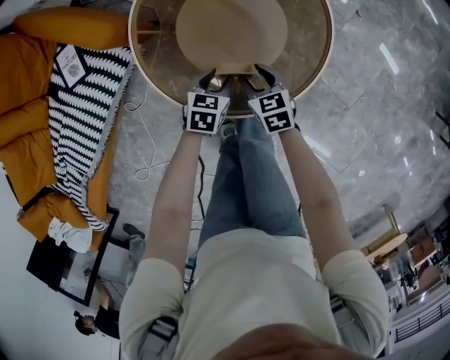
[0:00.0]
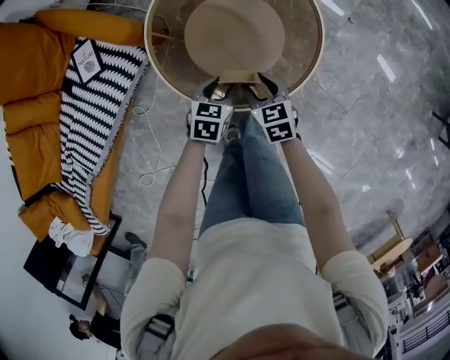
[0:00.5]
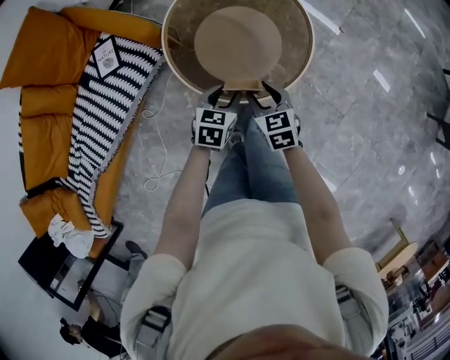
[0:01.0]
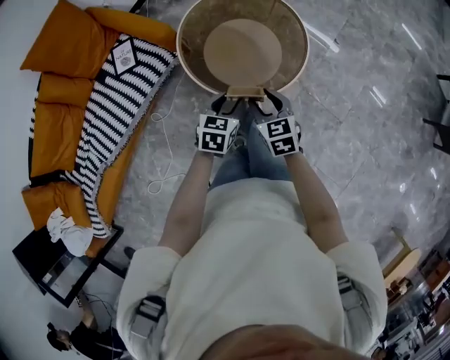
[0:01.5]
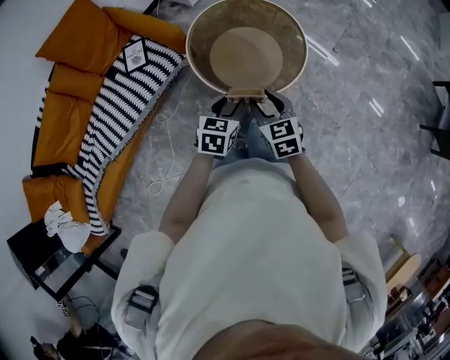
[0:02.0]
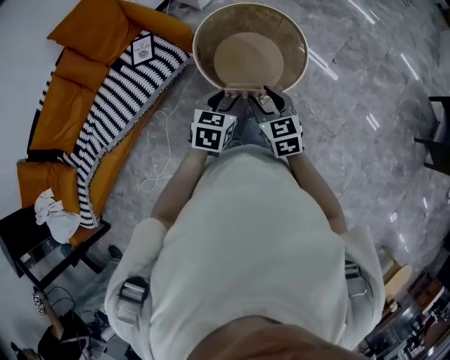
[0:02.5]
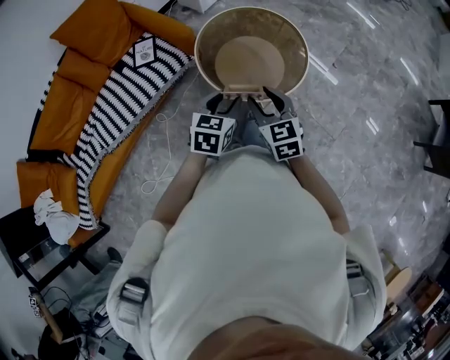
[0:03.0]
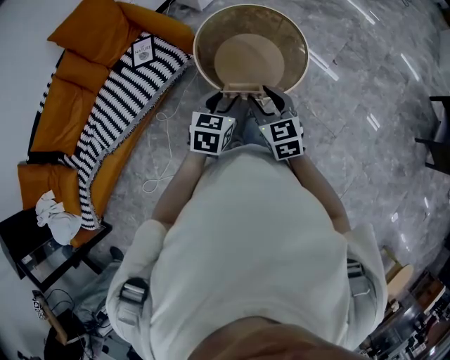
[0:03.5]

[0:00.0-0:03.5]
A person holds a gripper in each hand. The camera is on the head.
0:00.0 to 0:02.0: Both grippers travel together upward and backward, some 35 cm. The right gripper changes its angle by some 20 degrees.
0:02.0 to 0:03.5: Both grippers move upward, some 5 cm.

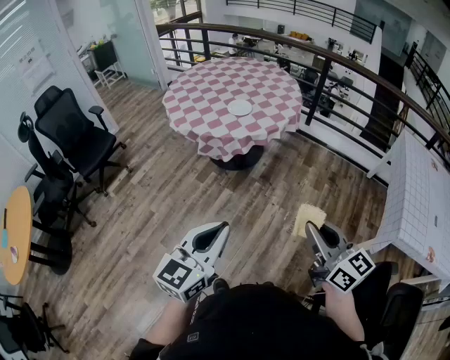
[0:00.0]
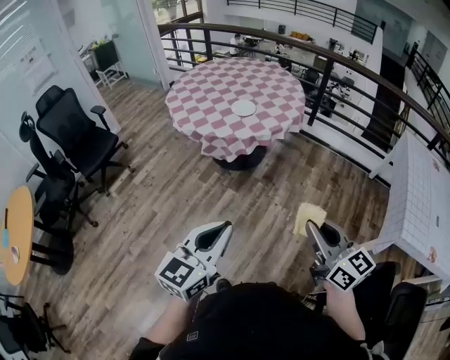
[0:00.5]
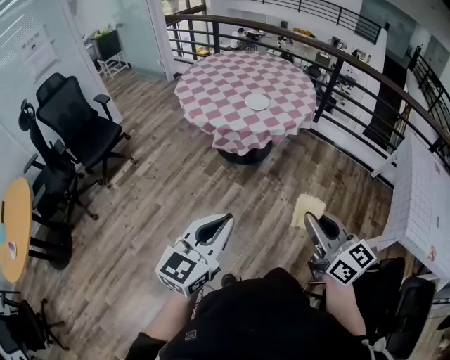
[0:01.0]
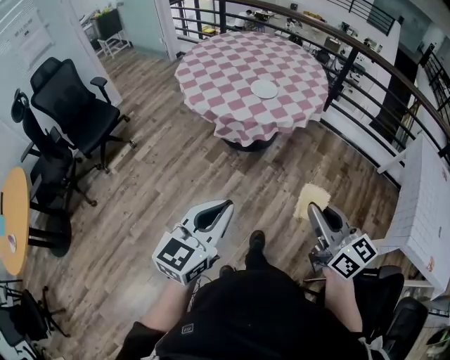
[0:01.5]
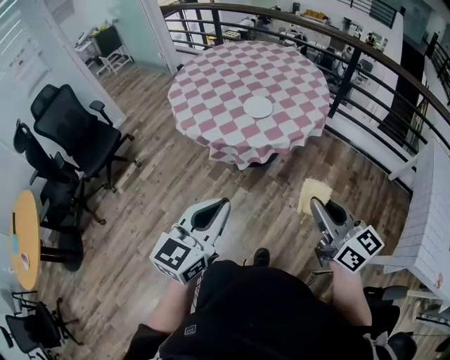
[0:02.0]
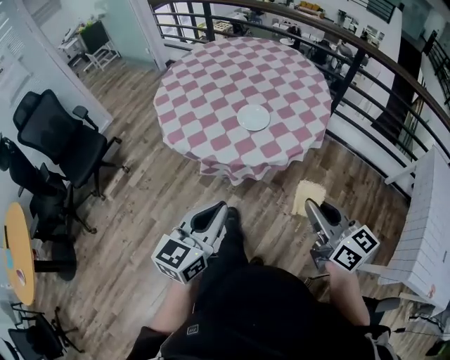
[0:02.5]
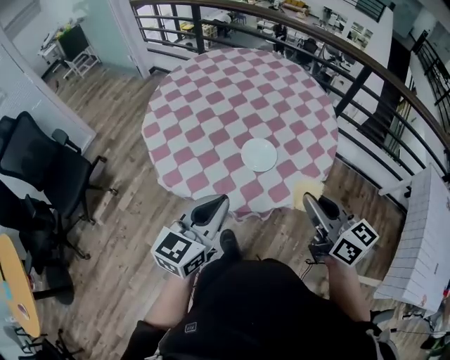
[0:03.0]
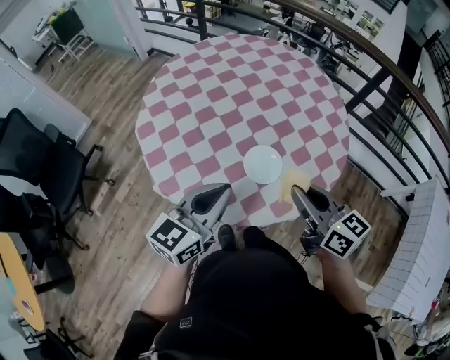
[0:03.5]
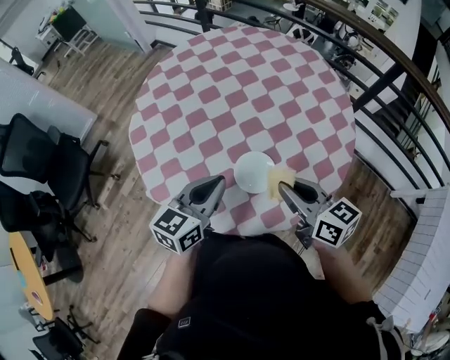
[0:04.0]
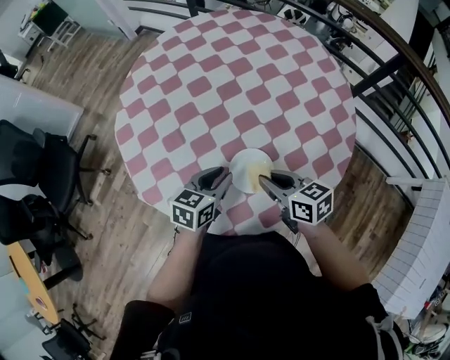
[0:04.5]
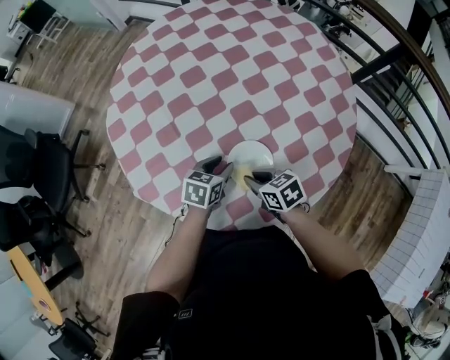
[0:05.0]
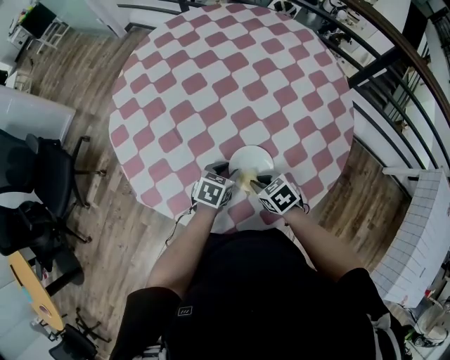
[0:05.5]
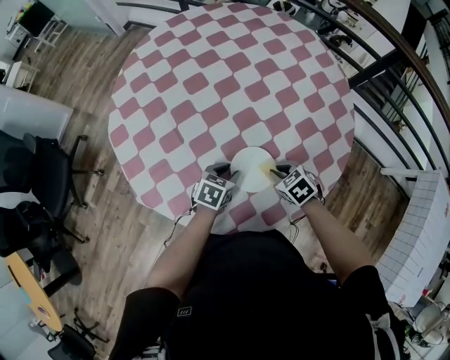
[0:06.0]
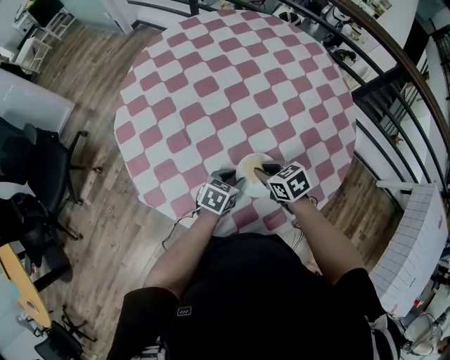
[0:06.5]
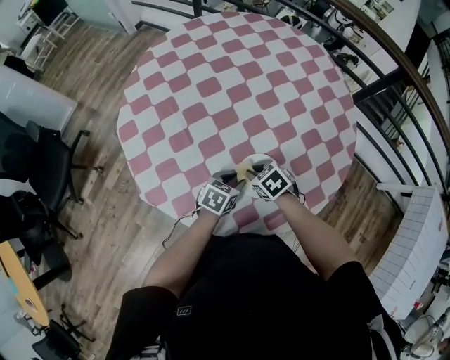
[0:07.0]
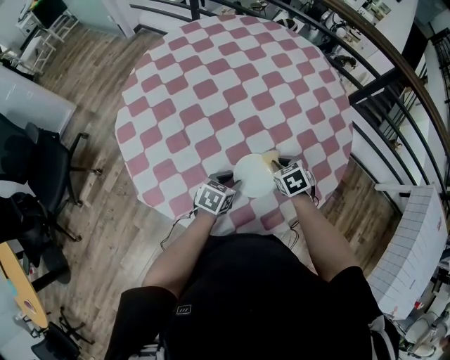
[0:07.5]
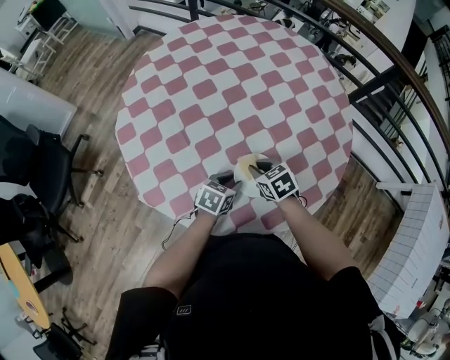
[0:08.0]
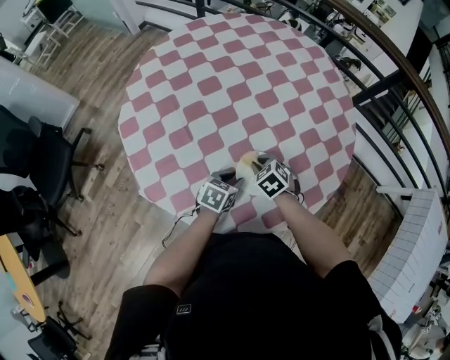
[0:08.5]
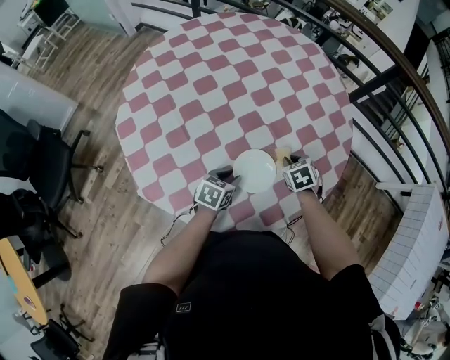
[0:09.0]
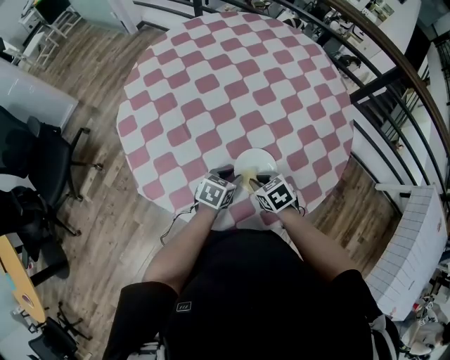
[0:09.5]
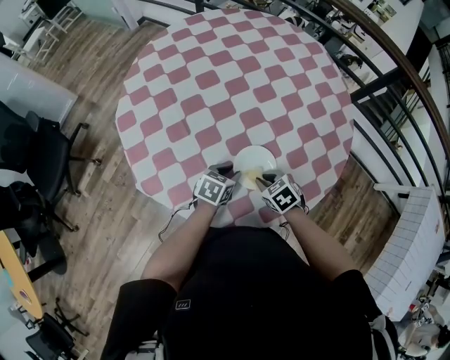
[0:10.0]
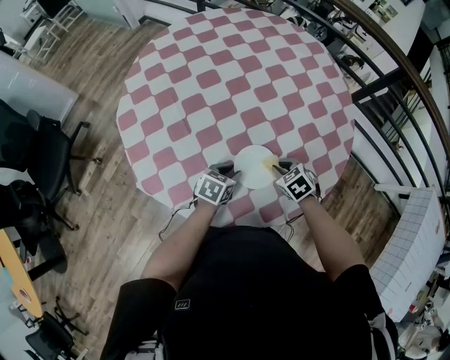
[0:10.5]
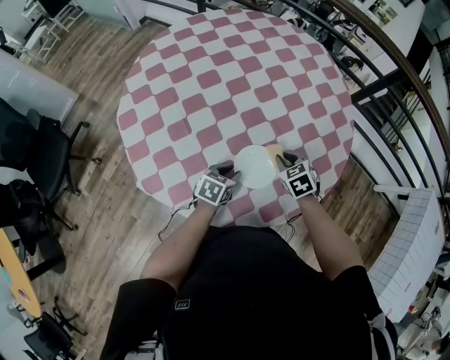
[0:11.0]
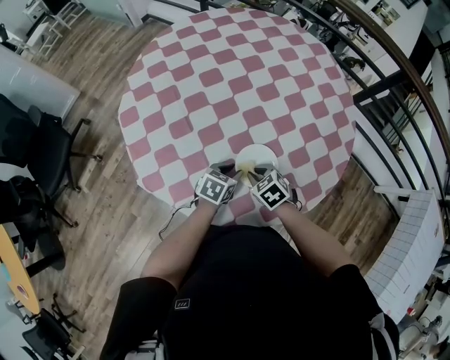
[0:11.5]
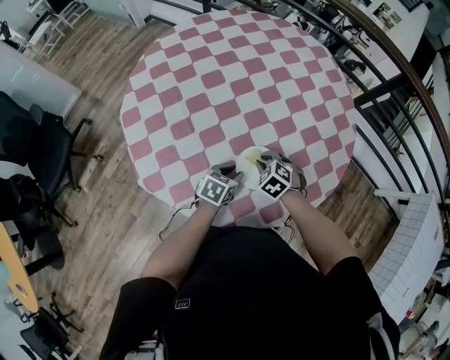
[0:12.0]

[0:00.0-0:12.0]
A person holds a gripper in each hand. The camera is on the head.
0:00.0 to 0:02.0: The two grippers go approximately 20 cm forward.
0:02.0 to 0:04.0: The pair of grippers is taken forward, about 40 cm. The right gripper rotates some 20 degrees.
0:04.0 to 0:06.0: The grippers both shift downward by roughly 25 cm. The right gripper tilts its fingers some 50 degrees downward, while the left gripper tilts its fingers roughly 30 degrees downward, and opens.
0:06.0 to 0:08.0: The right gripper moves some 10 cm.
0:08.0 to 0:10.0: The right gripper goes roughly 5 cm backward, and moves roughly 15 cm to the right and comes back.
0:10.0 to 0:12.0: The right gripper heads forward, covering approximately 5 cm, moves some 5 cm to the right and comes back, and swivels roughly 20 degrees.

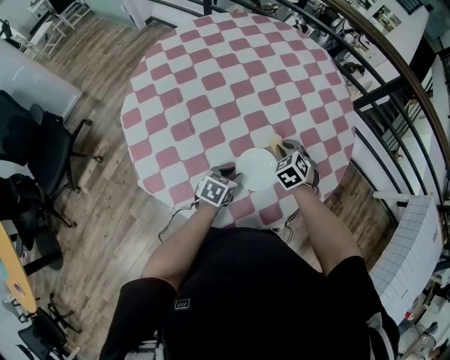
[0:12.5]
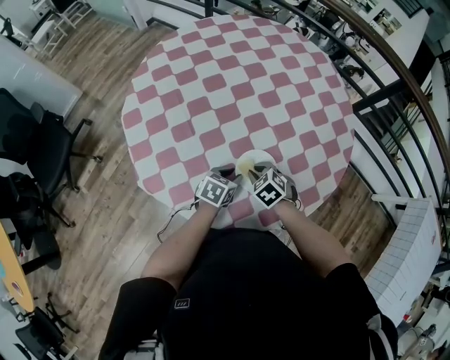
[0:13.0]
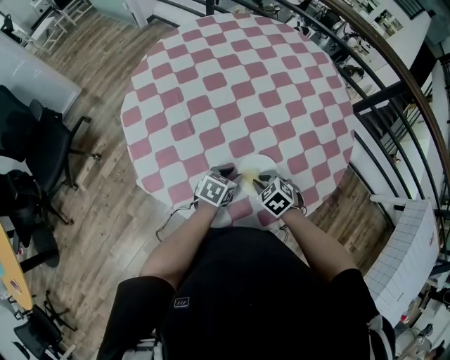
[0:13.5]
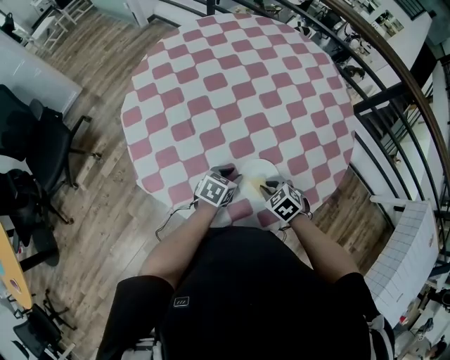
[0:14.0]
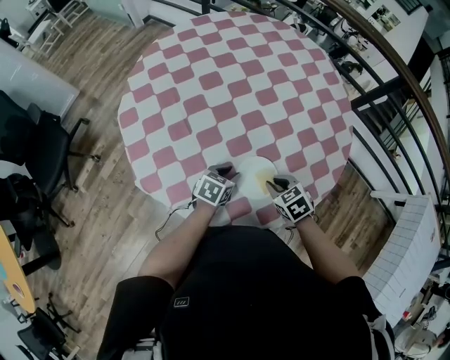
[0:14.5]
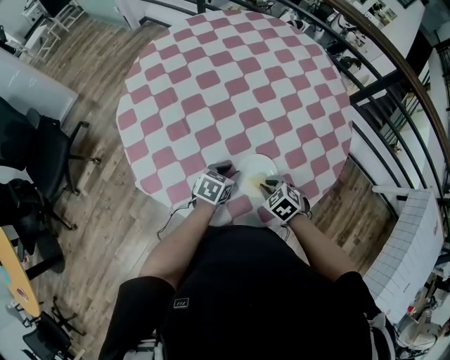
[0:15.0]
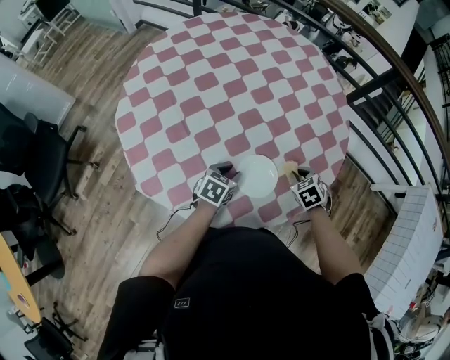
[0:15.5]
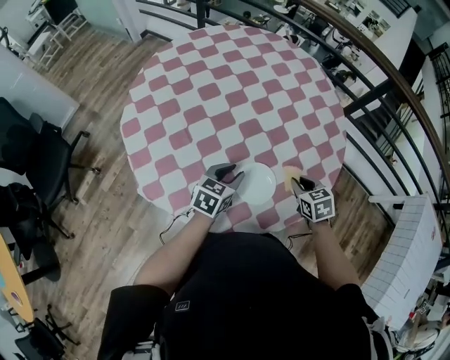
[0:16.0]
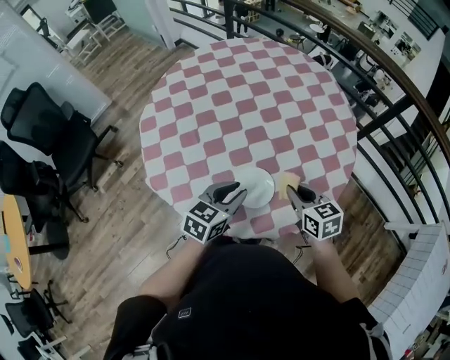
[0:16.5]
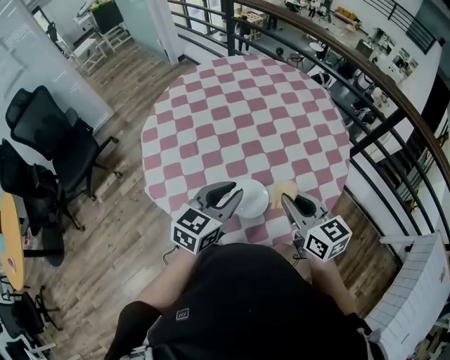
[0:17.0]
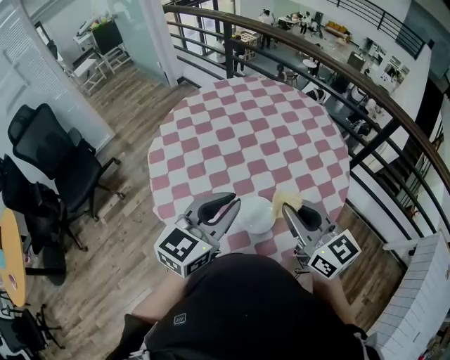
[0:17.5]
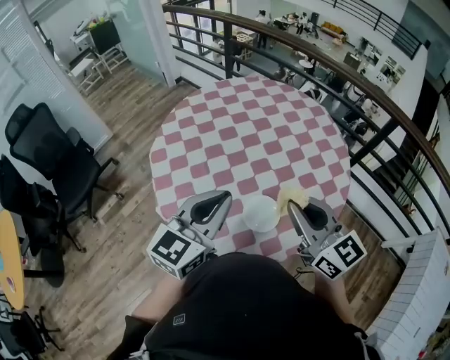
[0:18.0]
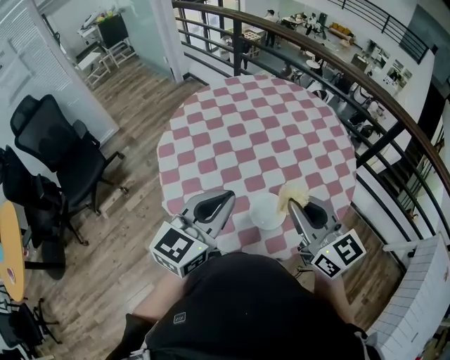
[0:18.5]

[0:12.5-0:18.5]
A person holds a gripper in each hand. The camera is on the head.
0:12.5 to 0:14.5: The right gripper shifts roughly 15 cm backward, and turns by some 20 degrees.
0:14.5 to 0:16.5: The right gripper shifts approximately 15 cm upward and to the right, and changes its angle by roughly 30 degrees; the left gripper moves upward, some 15 cm, and rotates roughly 20 degrees.
0:16.5 to 0:18.5: The two grippers go approximately 25 cm upward and to the left. The right gripper angles its fingers upward, by approximately 30 degrees. Meanwhile the left gripper turns by roughly 30 degrees, and closes up.

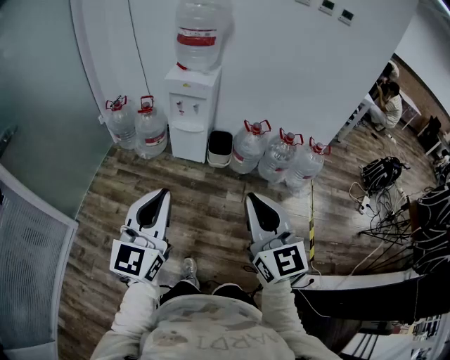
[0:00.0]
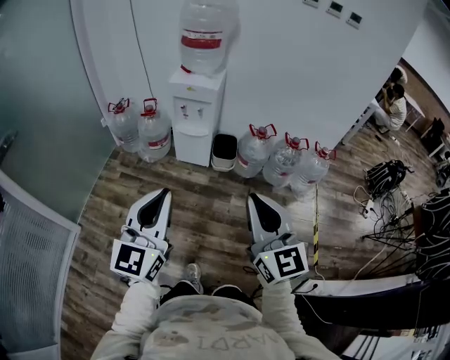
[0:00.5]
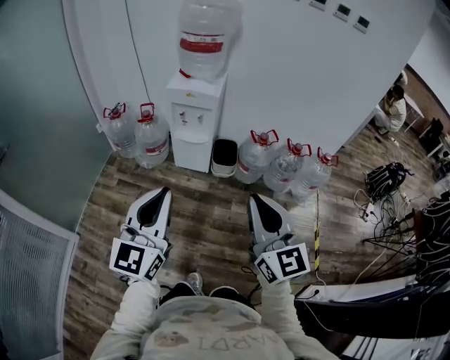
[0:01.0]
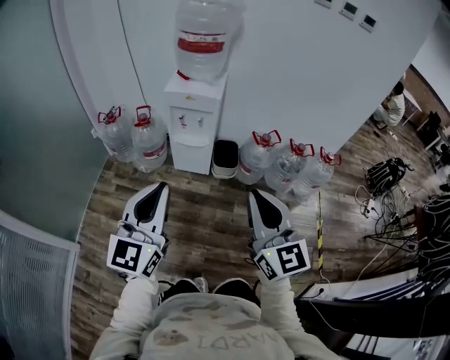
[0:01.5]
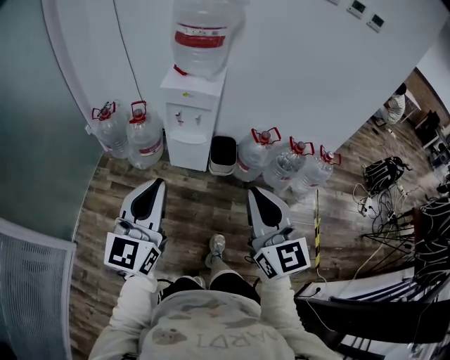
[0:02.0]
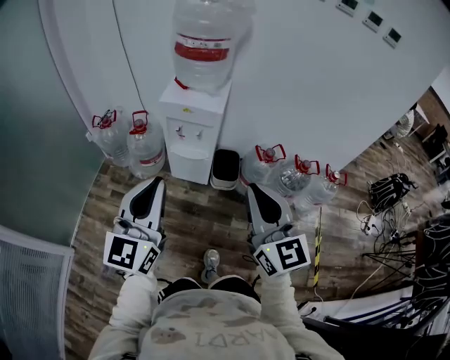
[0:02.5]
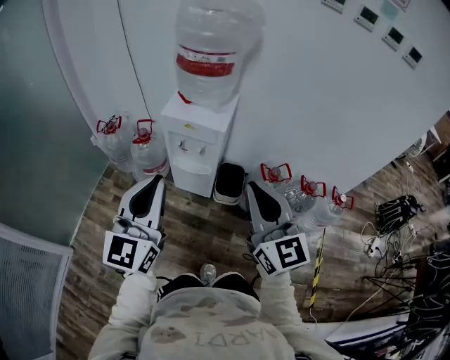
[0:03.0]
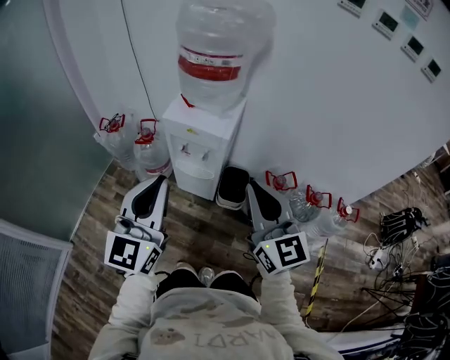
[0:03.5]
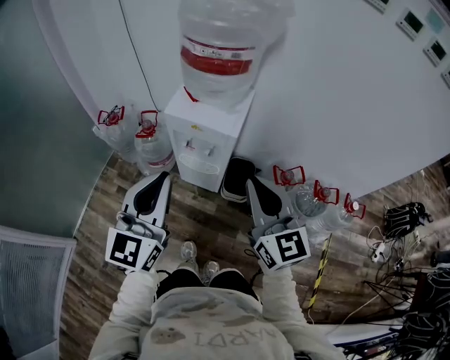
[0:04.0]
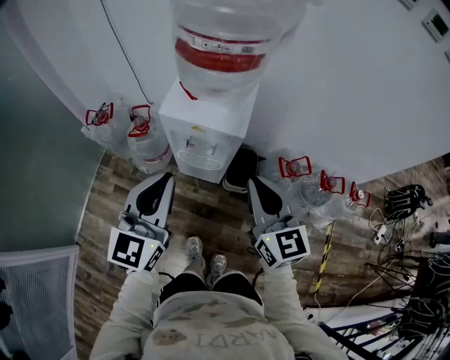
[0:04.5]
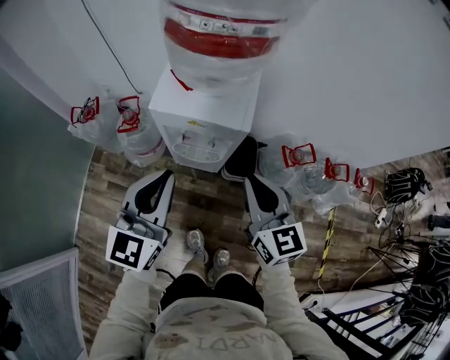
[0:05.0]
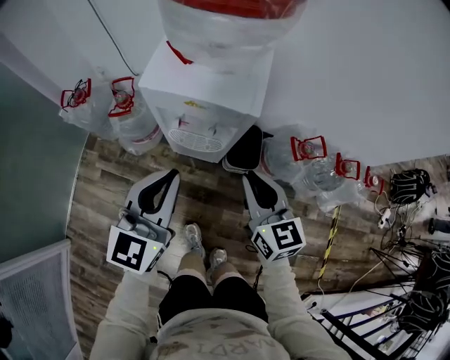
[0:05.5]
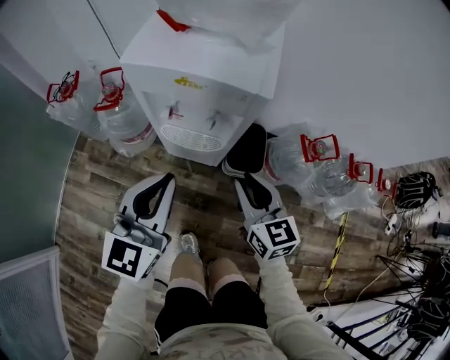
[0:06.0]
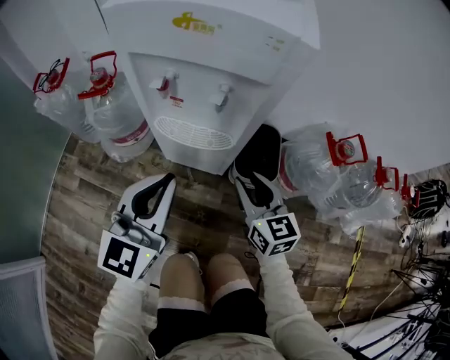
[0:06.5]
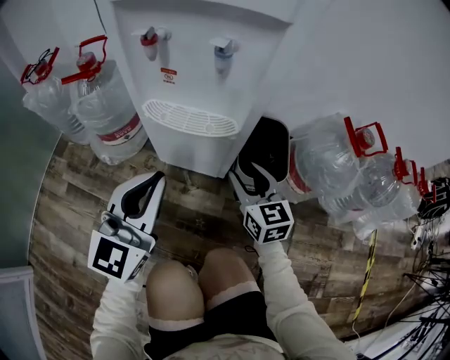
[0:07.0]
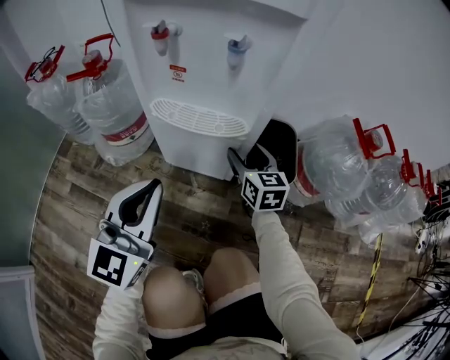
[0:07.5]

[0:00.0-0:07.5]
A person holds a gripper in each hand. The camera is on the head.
0:00.0 to 0:02.0: Both grippers move forward, roughly 25 cm.
0:02.0 to 0:04.0: The grippers both shift forward by about 30 cm.
0:04.0 to 0:05.5: Both grippers move downward and forward, some 25 cm. The right gripper swivels about 20 degrees.
0:05.5 to 0:07.5: Both grippers move downward, roughly 50 cm. The right gripper opens up.
